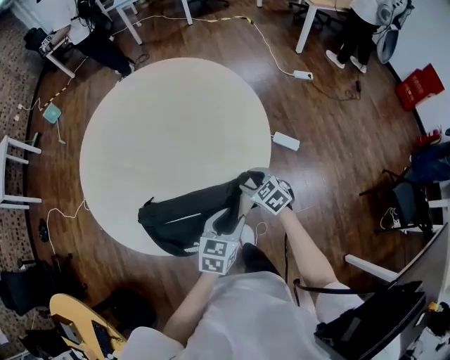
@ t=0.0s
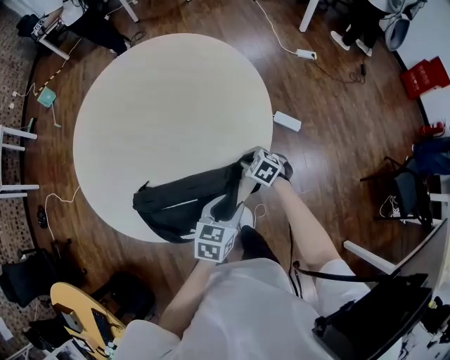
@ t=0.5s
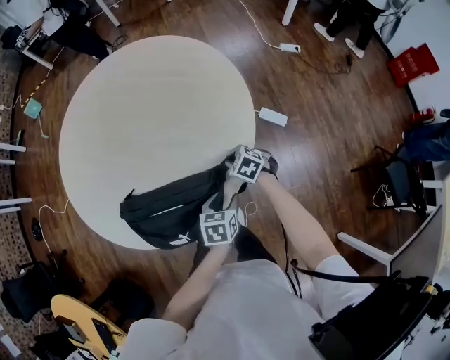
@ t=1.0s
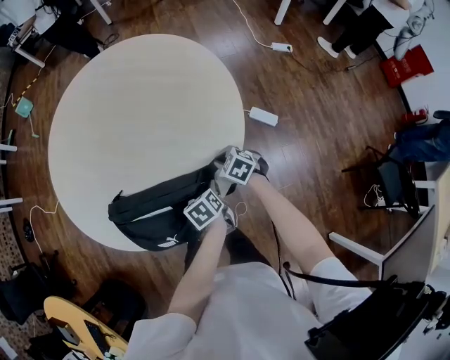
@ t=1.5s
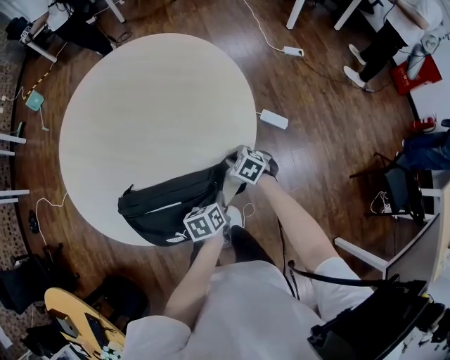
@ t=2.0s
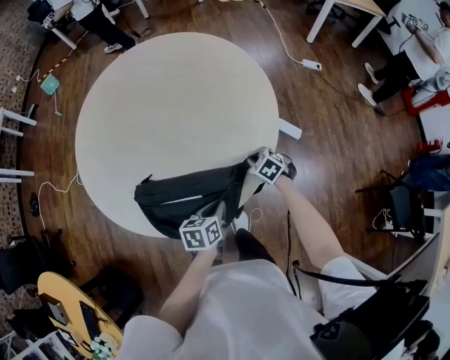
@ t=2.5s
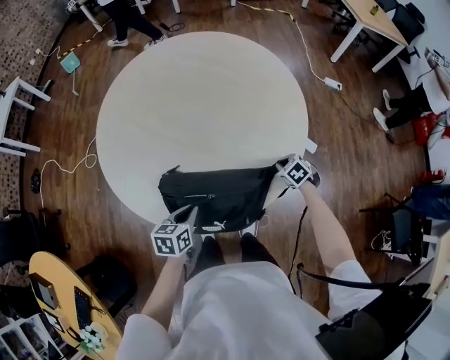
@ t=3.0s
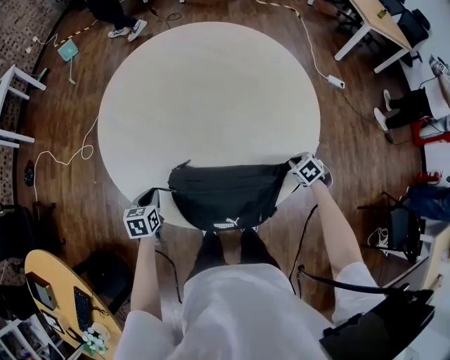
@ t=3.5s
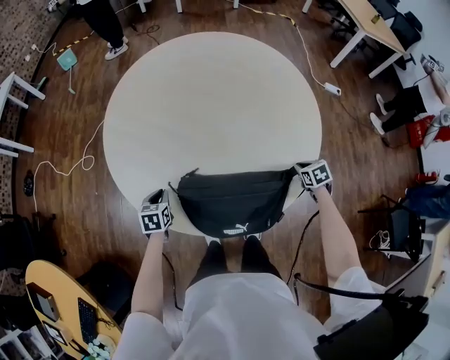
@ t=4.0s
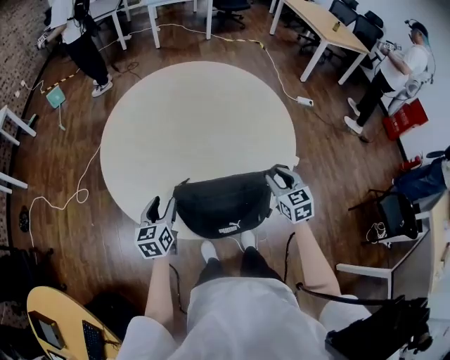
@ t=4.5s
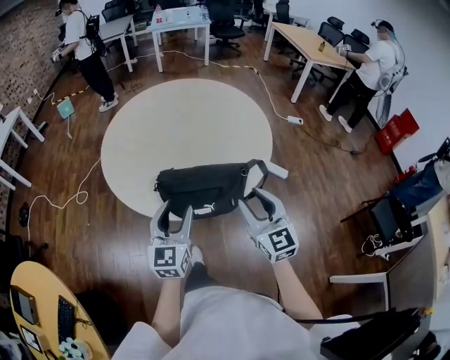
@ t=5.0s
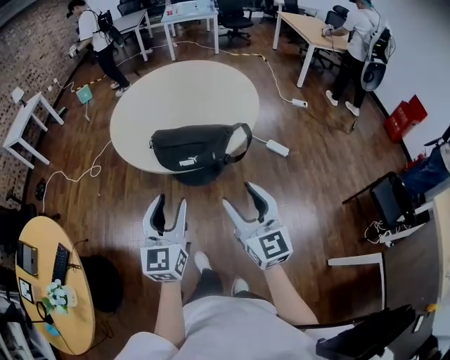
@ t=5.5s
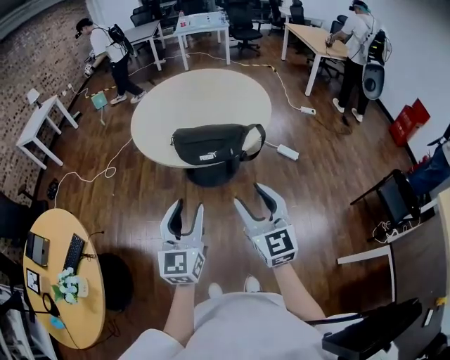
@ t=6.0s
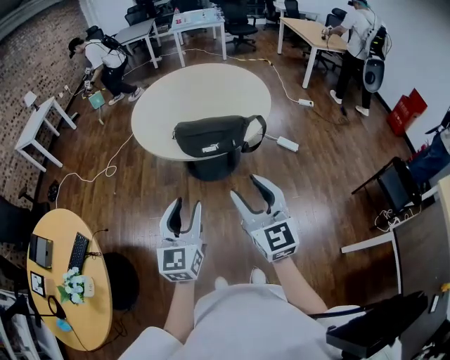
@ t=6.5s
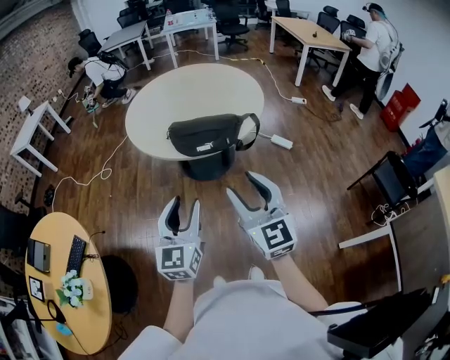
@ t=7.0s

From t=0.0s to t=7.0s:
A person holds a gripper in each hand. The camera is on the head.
From t=0.0s to t=2.0s: The two grippers go some 10 cm downward. The right gripper closes; the left gripper changes its angle by some 40 degrees, and closes up.
From t=2.0s to t=3.5s: The left gripper changes place by some 40 cm, and turns by roughly 20 degrees. The right gripper changes its angle by roughly 20 degrees.
From t=3.5s to t=5.0s: The right gripper heads upward, covering approximately 35 cm, angles its fingers upward, by roughly 70 degrees, and opens up. Meanwhile the left gripper shifts by approximately 35 cm, tilts its fingers about 50 degrees upward, and opens.
From t=5.0s to t=7.0s: Both grippers travel together backward, some 35 cm.

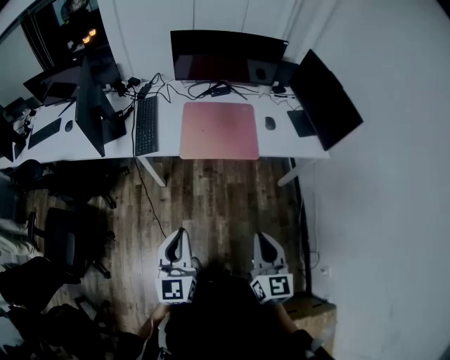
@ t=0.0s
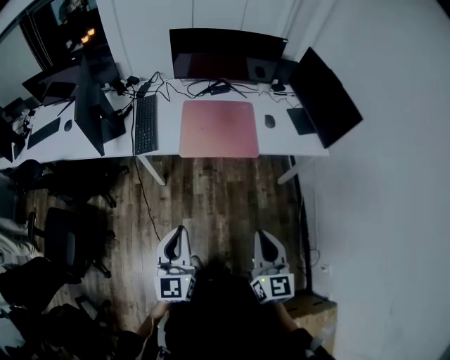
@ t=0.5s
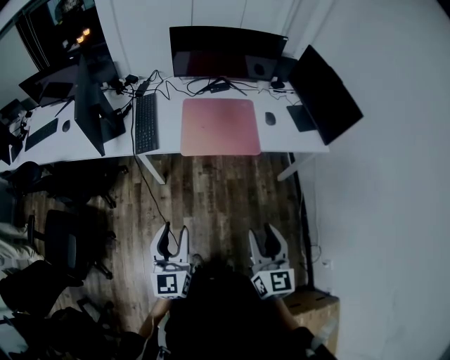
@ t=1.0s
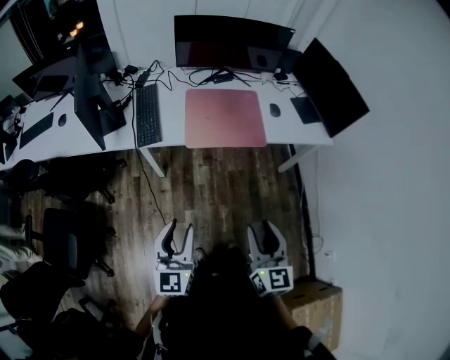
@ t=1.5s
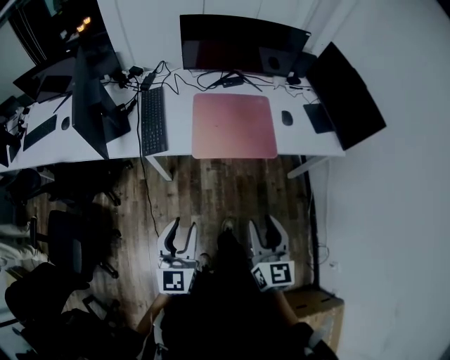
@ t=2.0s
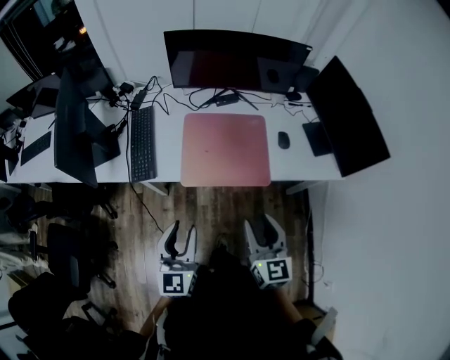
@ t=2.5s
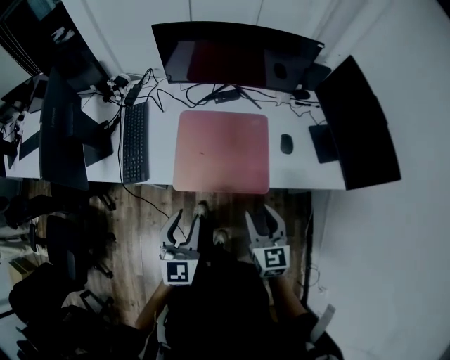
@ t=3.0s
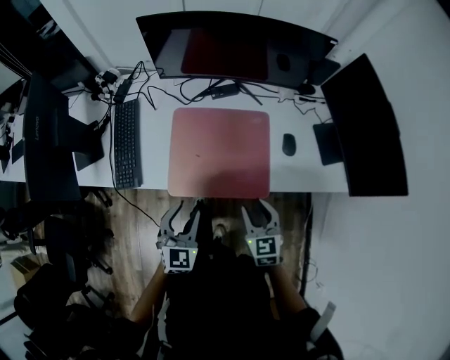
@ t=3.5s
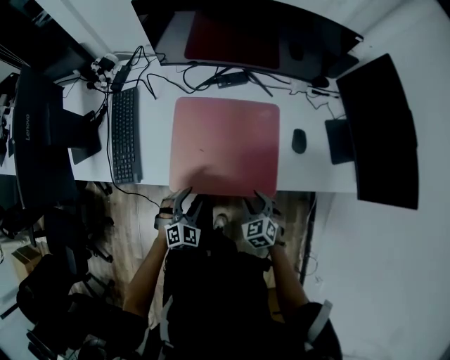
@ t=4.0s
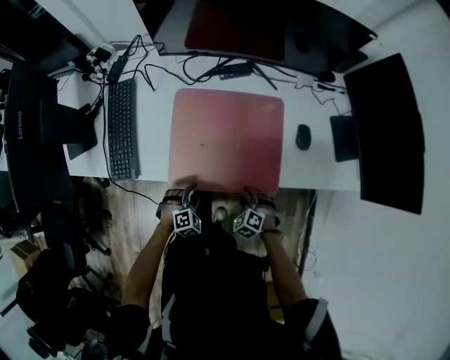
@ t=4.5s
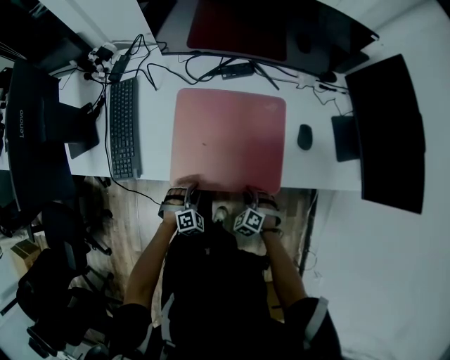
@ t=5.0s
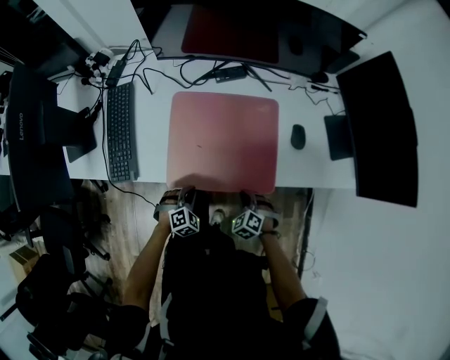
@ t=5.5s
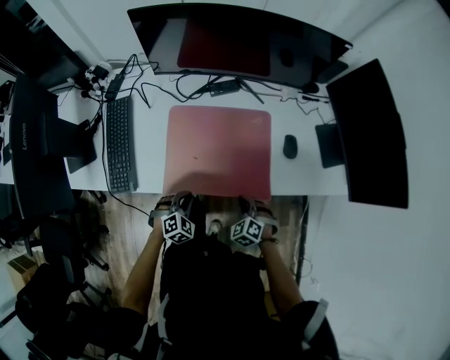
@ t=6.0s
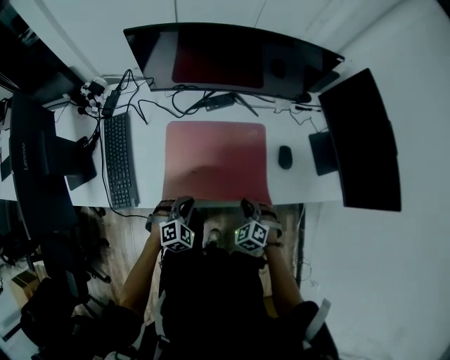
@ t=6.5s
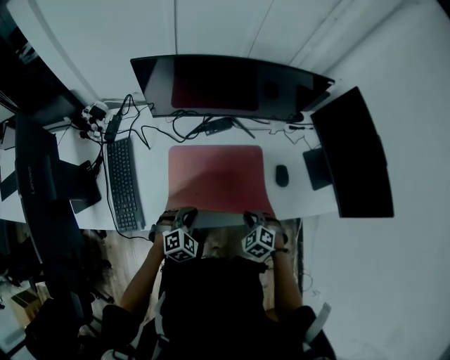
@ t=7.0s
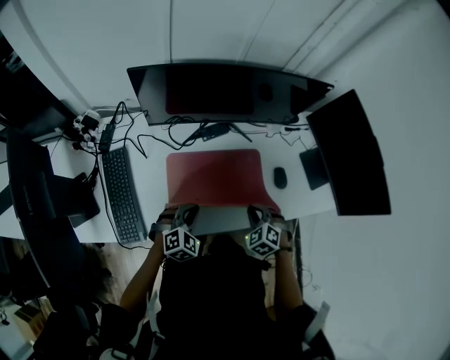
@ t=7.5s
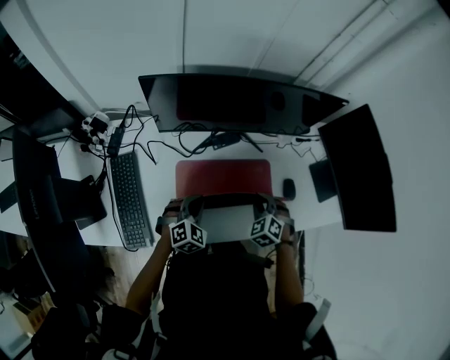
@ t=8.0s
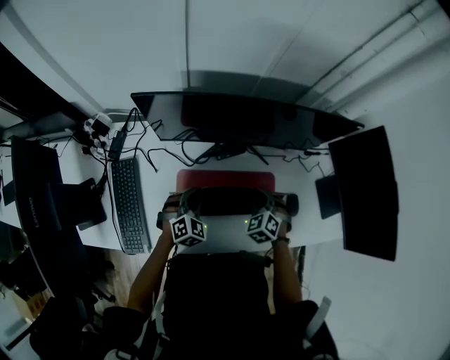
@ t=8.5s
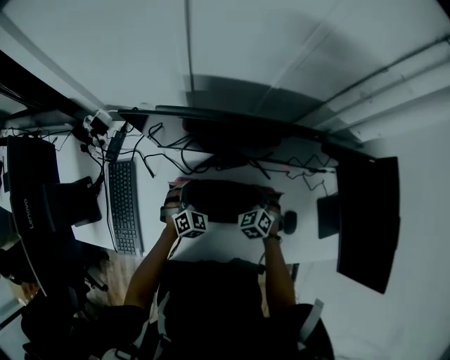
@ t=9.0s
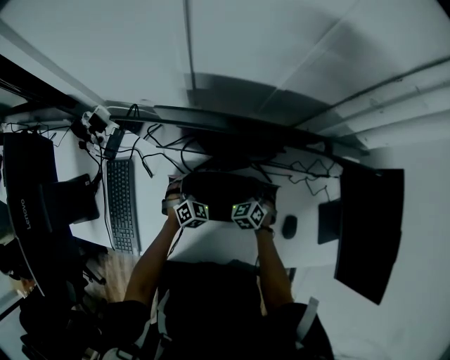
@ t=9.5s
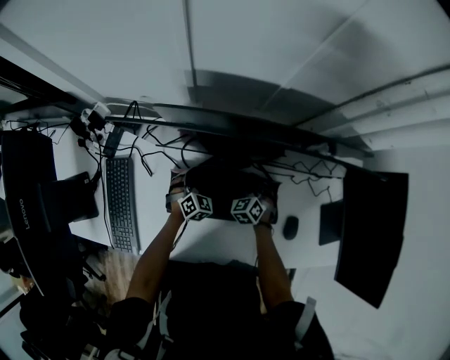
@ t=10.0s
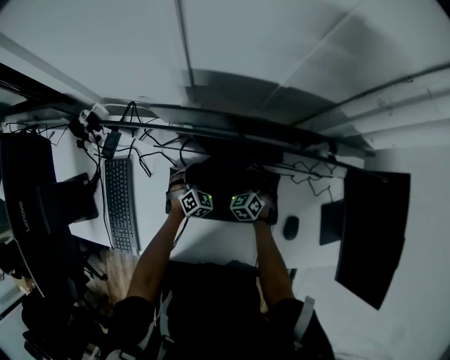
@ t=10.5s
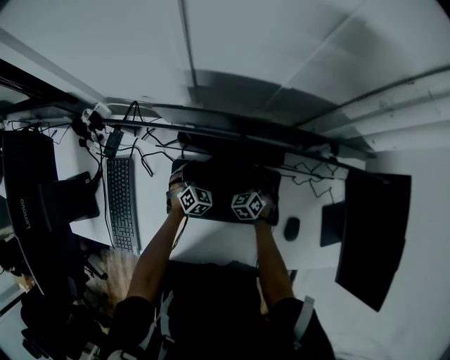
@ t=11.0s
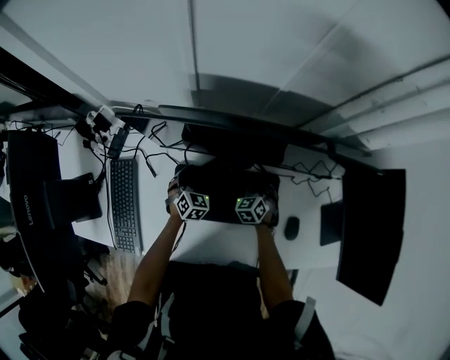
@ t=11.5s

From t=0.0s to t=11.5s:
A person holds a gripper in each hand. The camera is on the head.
From t=0.0s to t=2.0s: Both grippers travel together forward and to the left, approximately 15 cm. The right gripper opens up. The left gripper opens up.
From t=2.0s to t=4.0s: The left gripper is displaced forward, downward and to the right by approximately 40 cm, and angles its fingers downward, by some 30 degrees, while the right gripper travels forward and downward by approximately 40 cm, and tips its fingers downward by about 40 degrees.
From t=4.0s to t=6.0s: The left gripper travels downward and back again, roughly 15 cm each way, and closes; the right gripper reaches roughly 10 cm downward, then returns, and closes its fingers.
From t=6.0s to t=7.5s: The right gripper shifts some 15 cm upward and forward, while the left gripper is displaced forward and upward by roughly 20 cm.
From t=7.5s to t=9.5s: The grippers both shift forward by some 30 cm. The left gripper changes its angle by approximately 30 degrees.
From t=9.5s to t=11.5s: The right gripper opens, while the left gripper opens.

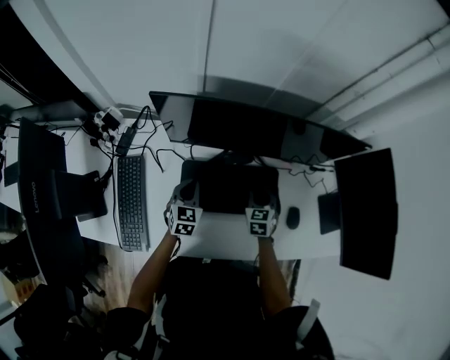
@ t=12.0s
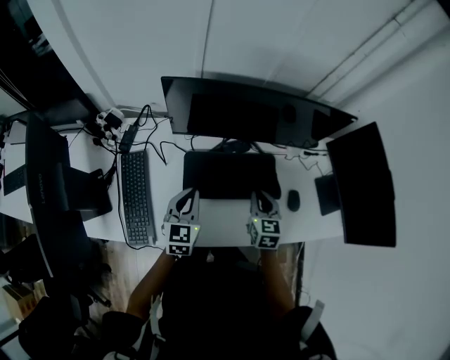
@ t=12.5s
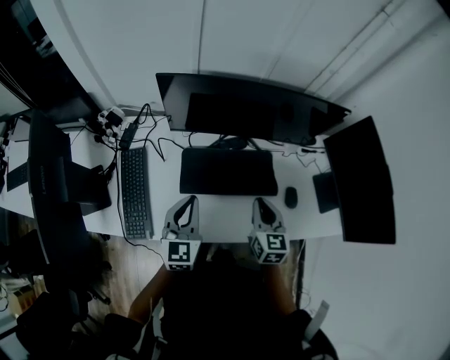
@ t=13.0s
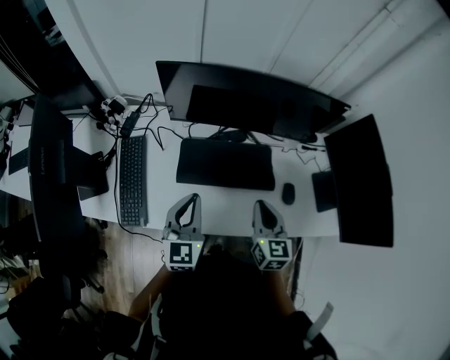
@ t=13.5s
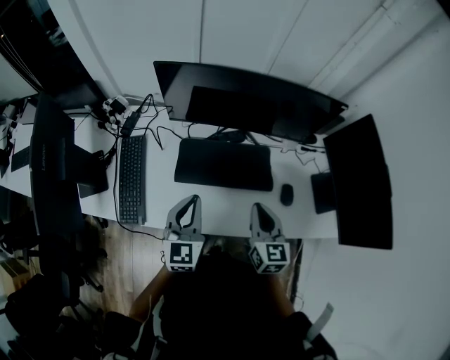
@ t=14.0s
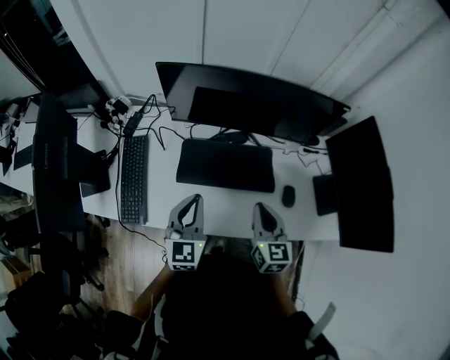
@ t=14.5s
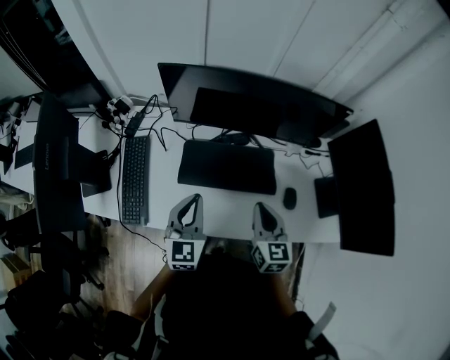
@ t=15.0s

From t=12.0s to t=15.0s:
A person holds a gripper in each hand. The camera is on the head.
From t=12.0s to t=13.5s: The right gripper heads backward and upward, covering approximately 25 cm, rotates roughly 30 degrees, and closes; the left gripper goes about 25 cm upward and backward, and changes its angle by about 20 degrees.
From t=13.5s to t=15.0s: The grippers move only a little.

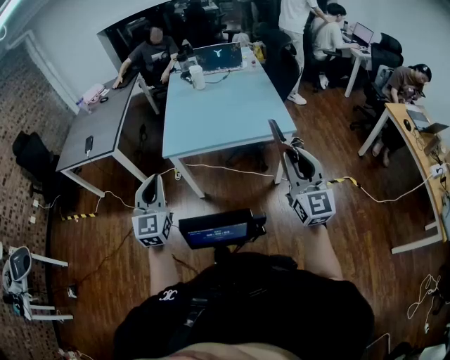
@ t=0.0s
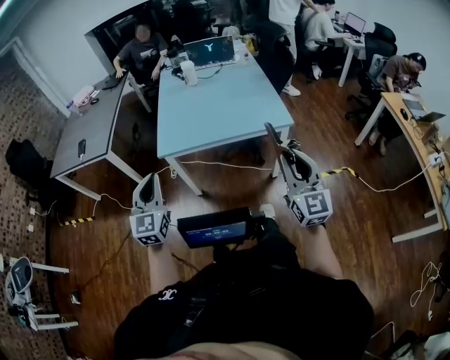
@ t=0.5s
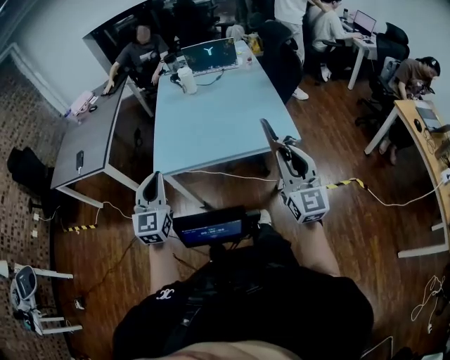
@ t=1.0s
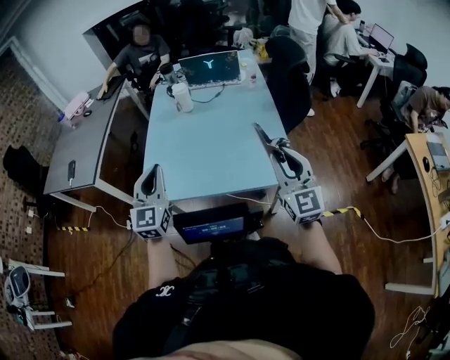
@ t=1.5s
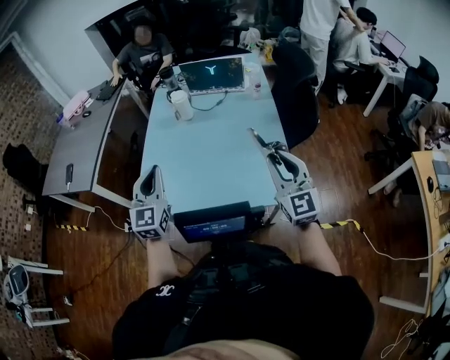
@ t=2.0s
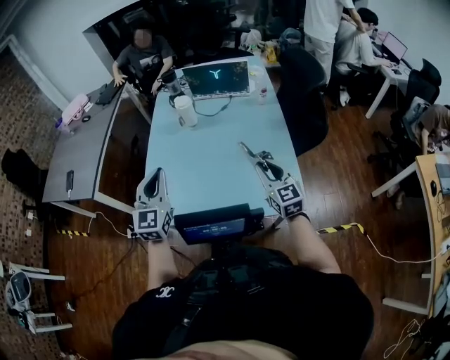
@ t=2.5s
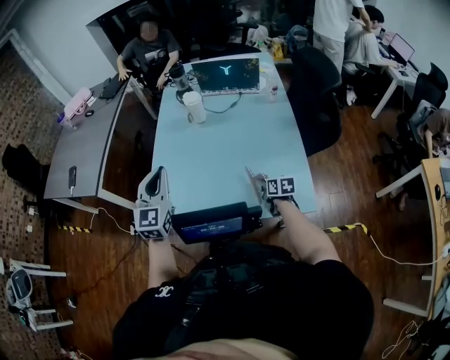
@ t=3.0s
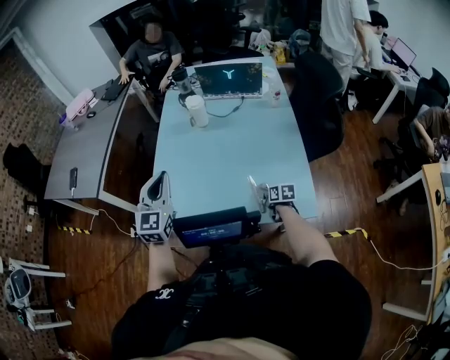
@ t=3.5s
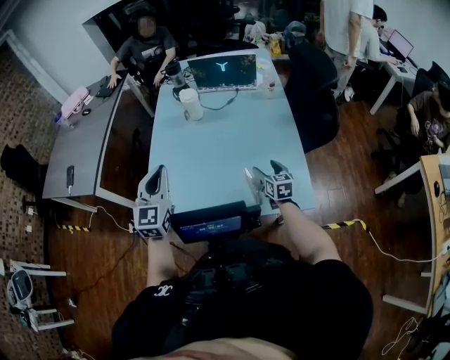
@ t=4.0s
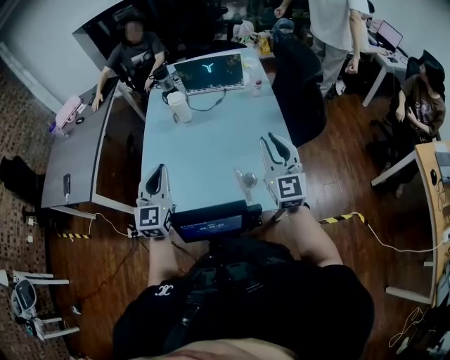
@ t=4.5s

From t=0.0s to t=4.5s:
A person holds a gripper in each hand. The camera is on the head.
From t=0.0s to t=2.0s: The two grippers travel together, forward, roughly 40 cm.
From t=2.0s to t=4.5s: The right gripper heads forward, covering roughly 10 cm, goes downward and returns, about 35 cm each way, and opens, then closes again. The left gripper goes some 5 cm forward.
